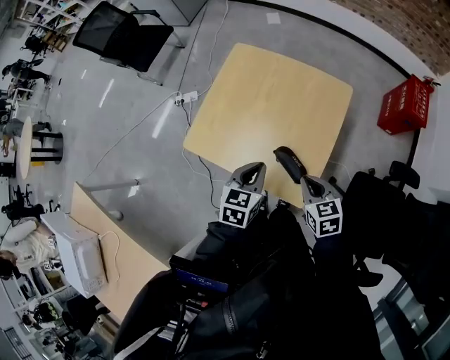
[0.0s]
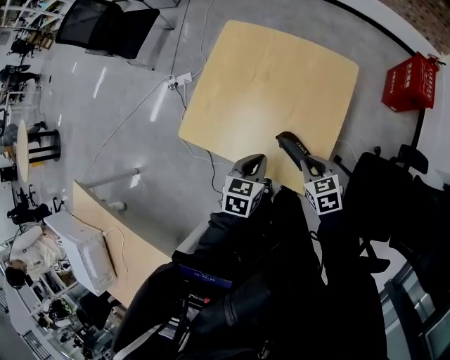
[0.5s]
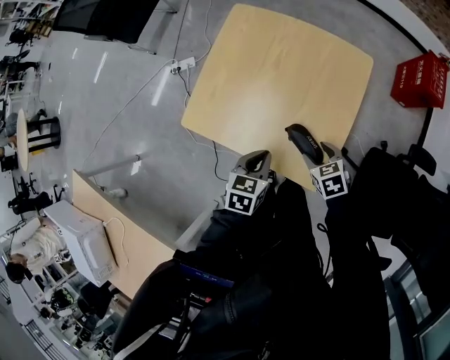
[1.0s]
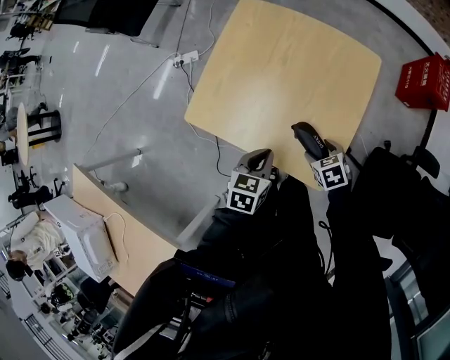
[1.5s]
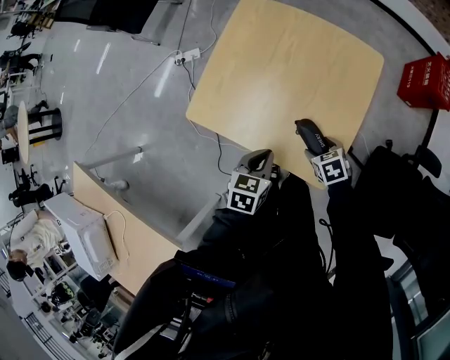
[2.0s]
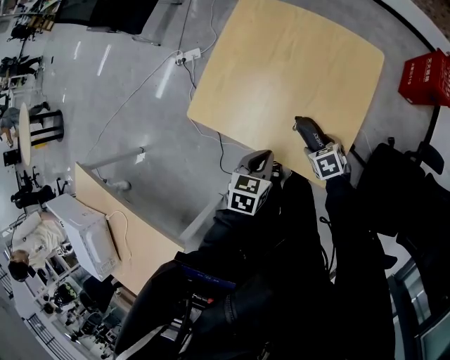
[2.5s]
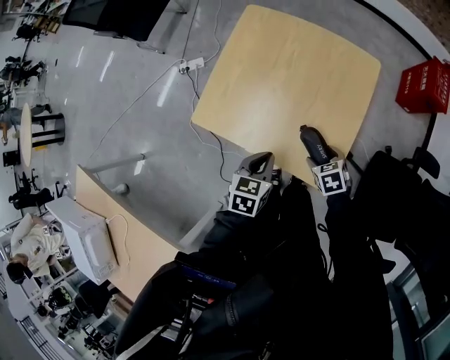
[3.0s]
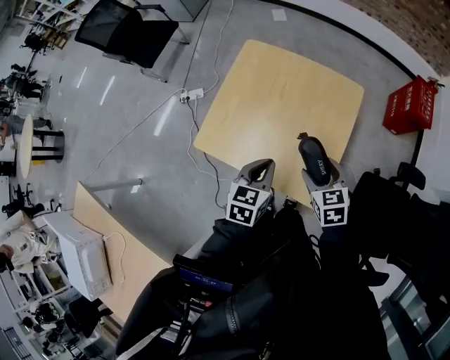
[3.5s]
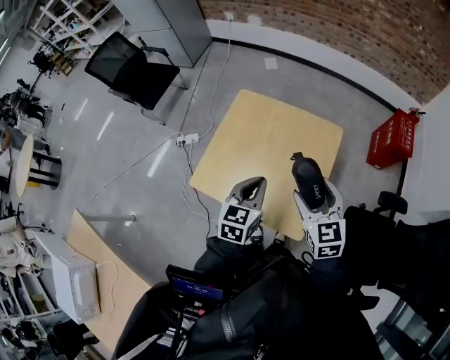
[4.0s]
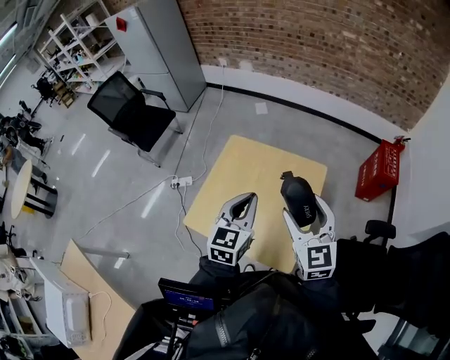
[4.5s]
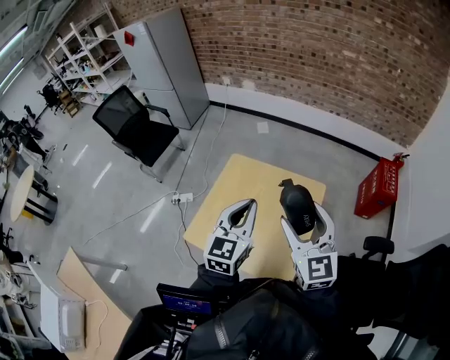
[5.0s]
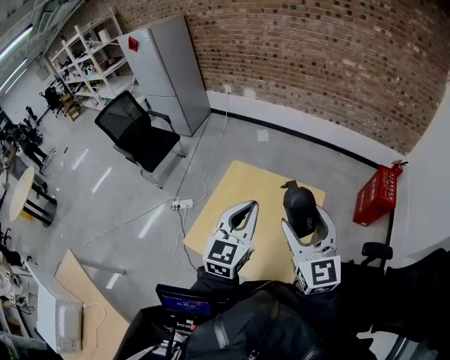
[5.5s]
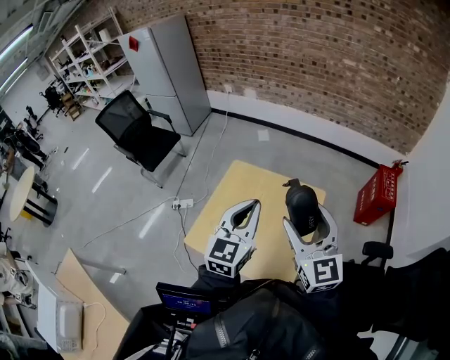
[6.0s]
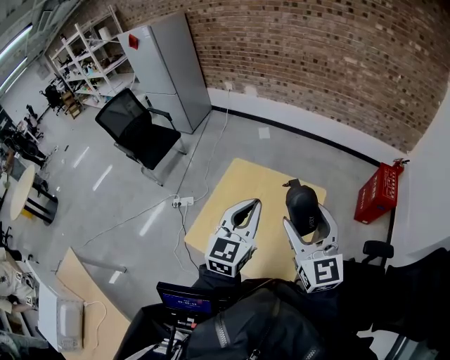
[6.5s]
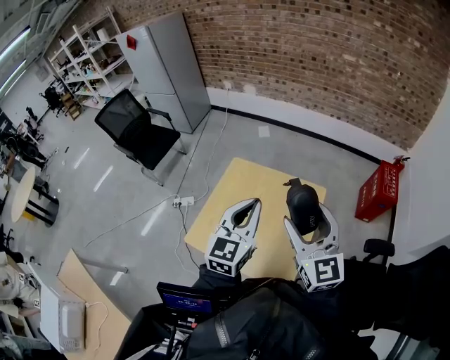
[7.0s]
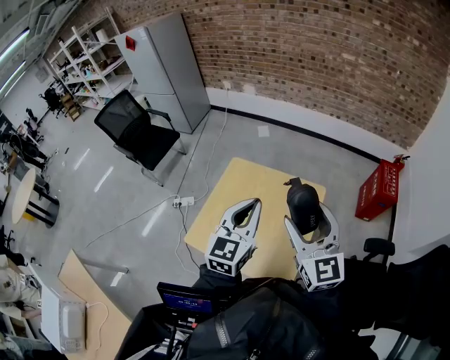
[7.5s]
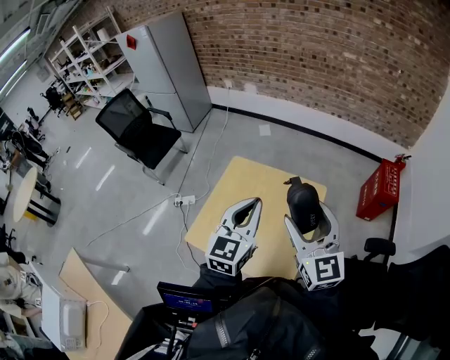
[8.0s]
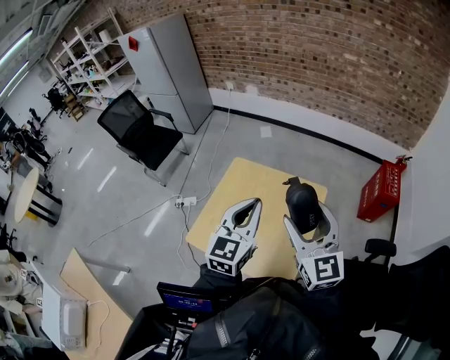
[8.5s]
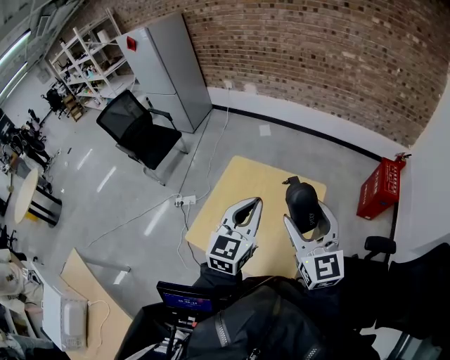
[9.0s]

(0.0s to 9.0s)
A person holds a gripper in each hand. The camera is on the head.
0.0s - 2.0s: The left gripper heads downward, covering about 10 cm. Meanwhile the right gripper goes approximately 20 cm downward, rotates approximately 30 degrees, and opens up.
2.0s - 4.5s: Both grippers move upward, some 40 cm. The left gripper angles its fingers upward, by about 30 degrees. The right gripper tips its fingers upward by some 50 degrees.
4.5s - 7.0s: Both grippers move upward, about 5 cm.
7.0s - 9.0s: Neither gripper changes place.

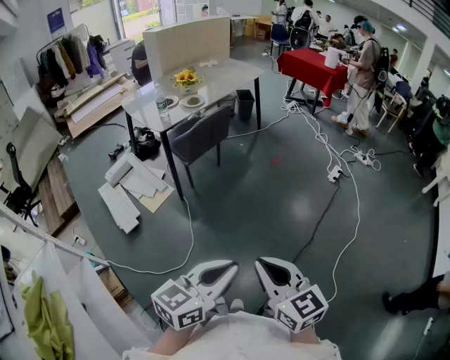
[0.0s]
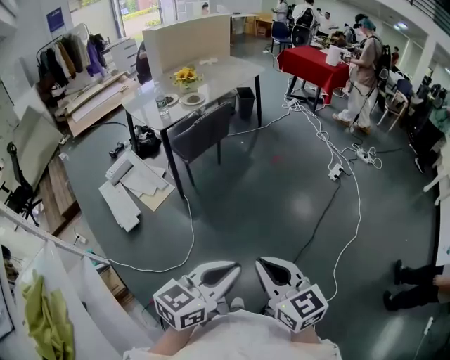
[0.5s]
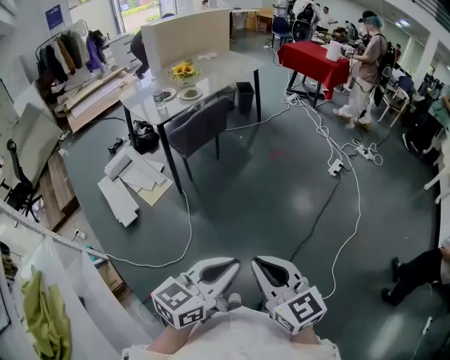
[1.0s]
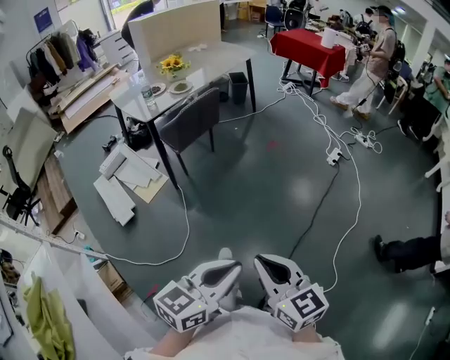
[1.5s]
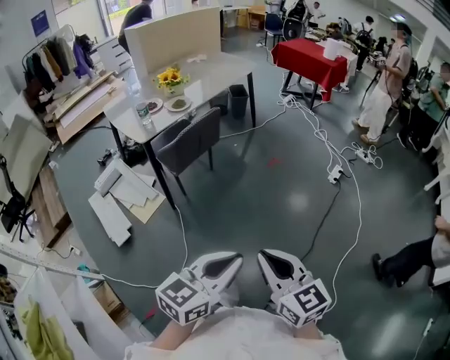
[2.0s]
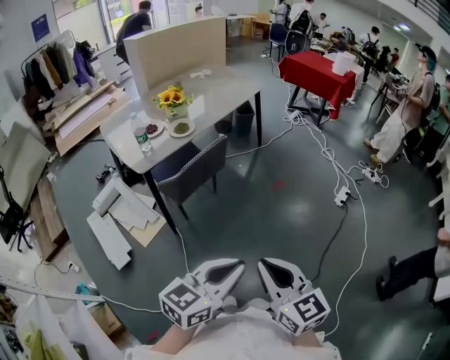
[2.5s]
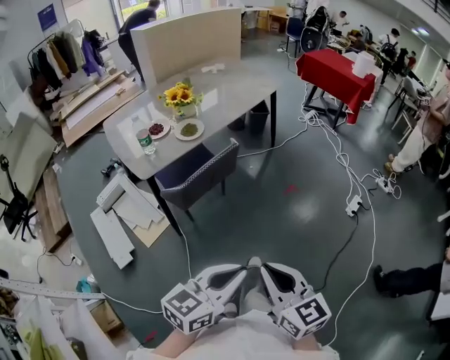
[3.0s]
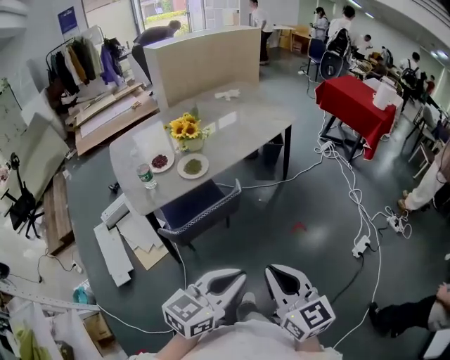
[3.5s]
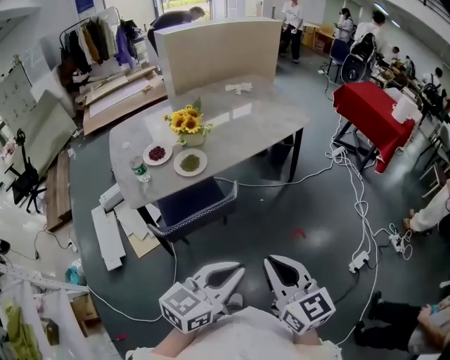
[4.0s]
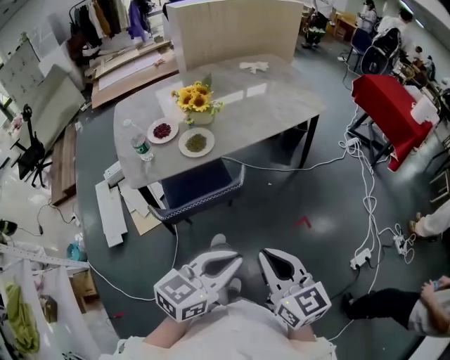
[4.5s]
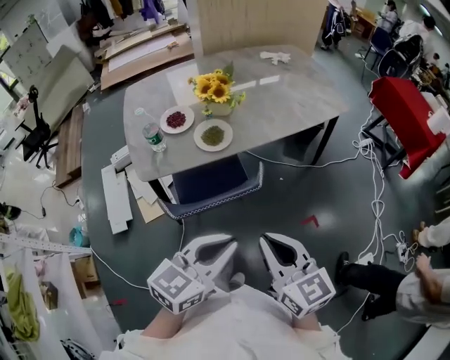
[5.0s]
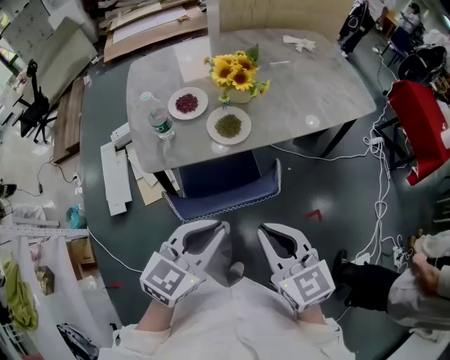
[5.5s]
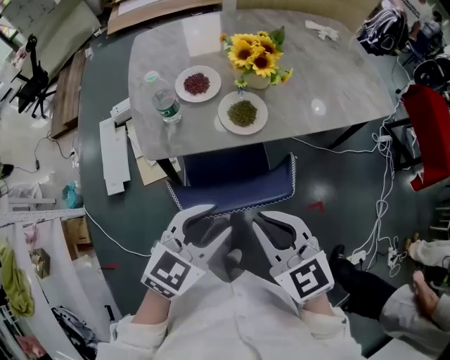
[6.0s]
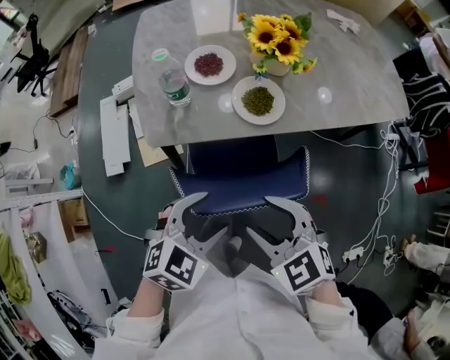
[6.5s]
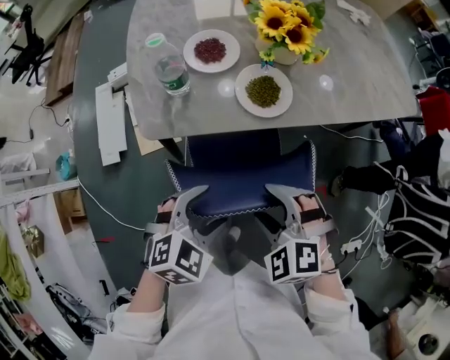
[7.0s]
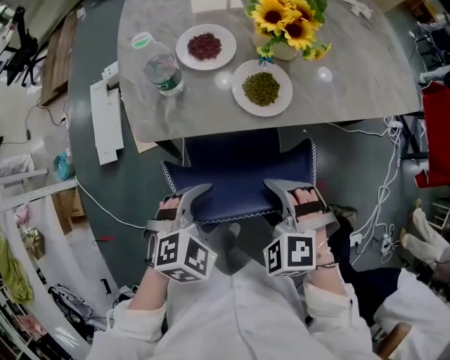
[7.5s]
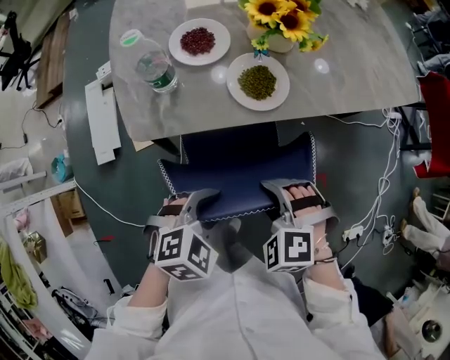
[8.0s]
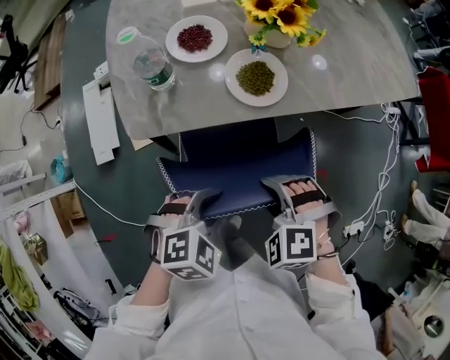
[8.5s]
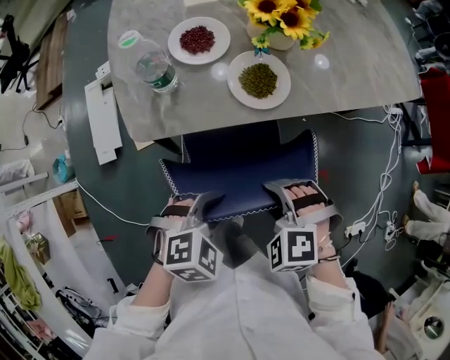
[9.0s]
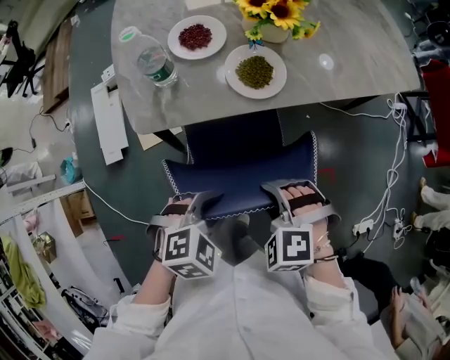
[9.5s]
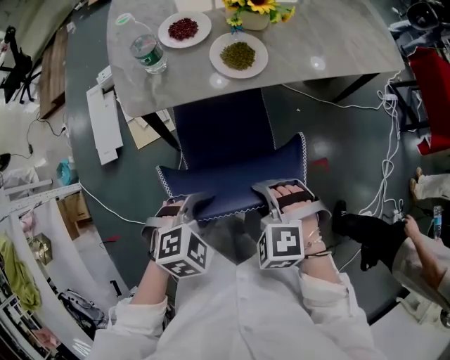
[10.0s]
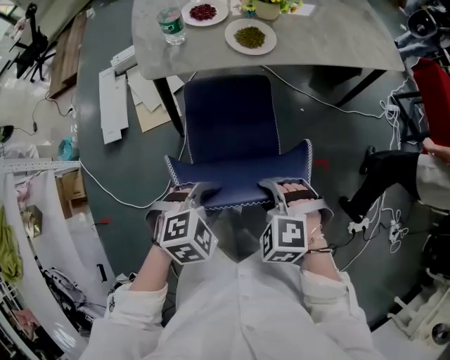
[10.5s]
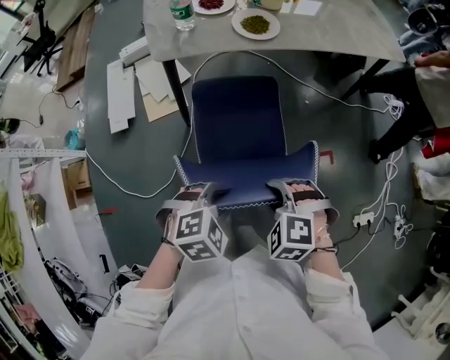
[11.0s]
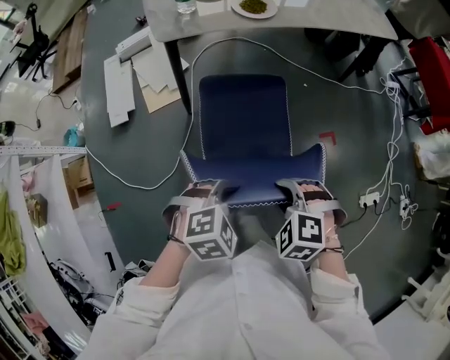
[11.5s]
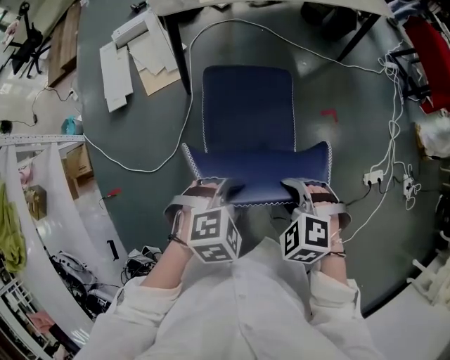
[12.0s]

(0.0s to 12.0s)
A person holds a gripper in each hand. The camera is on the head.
0.0s - 2.0s: The two grippers go roughly 15 cm forward.
2.0s - 4.0s: The two grippers travel together, forward, some 50 cm.
4.0s - 6.0s: The two grippers go some 25 cm to the left, forward and downward. The left gripper changes its angle by about 30 degrees, and opens its fingers; the right gripper swivels roughly 40 degrees.
6.0s - 8.0s: The grippers both shift downward by roughly 15 cm. The right gripper tips its fingers downward by some 40 degrees, and opens its fingers. The left gripper changes its angle by some 30 degrees, and opens, then closes once more.
8.0s - 10.0s: The grippers both shift backward by roughly 10 cm.
10.0s - 12.0s: The two grippers go some 30 cm backward.

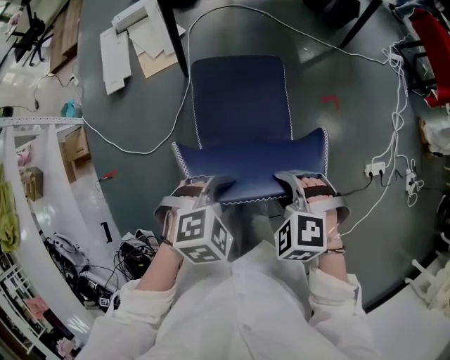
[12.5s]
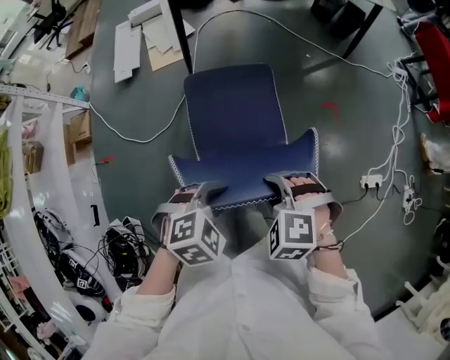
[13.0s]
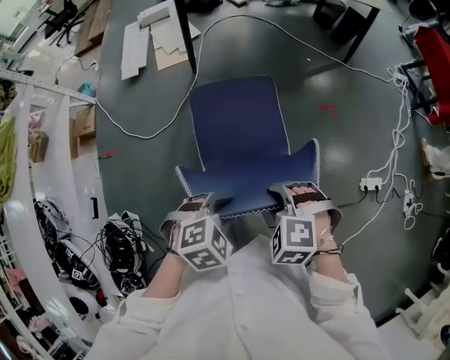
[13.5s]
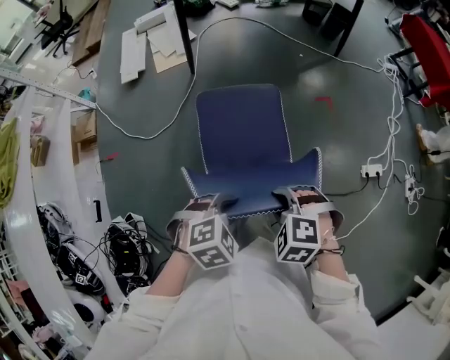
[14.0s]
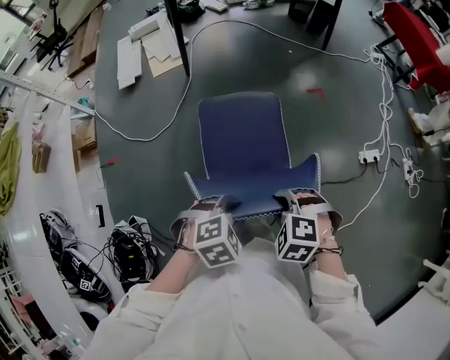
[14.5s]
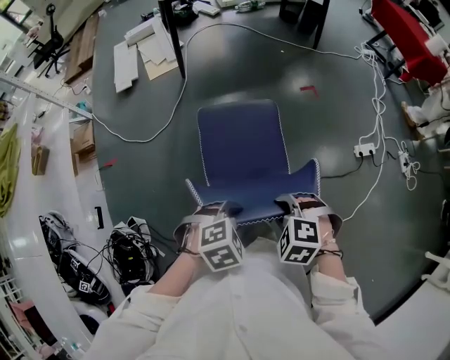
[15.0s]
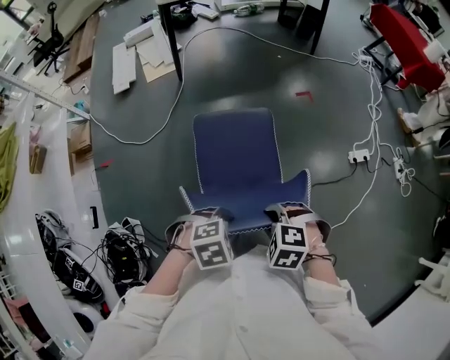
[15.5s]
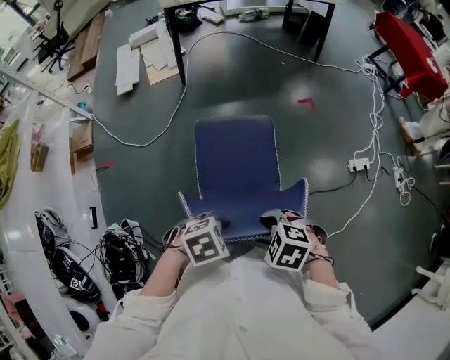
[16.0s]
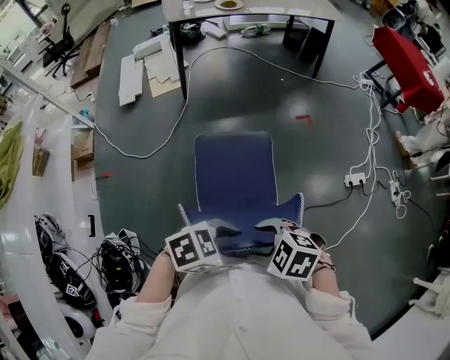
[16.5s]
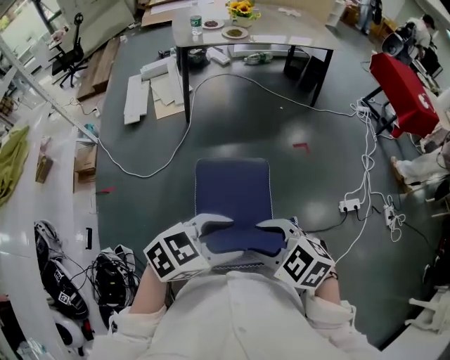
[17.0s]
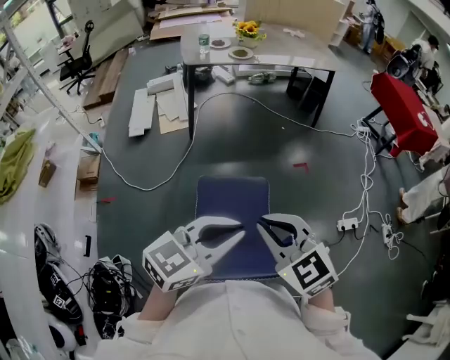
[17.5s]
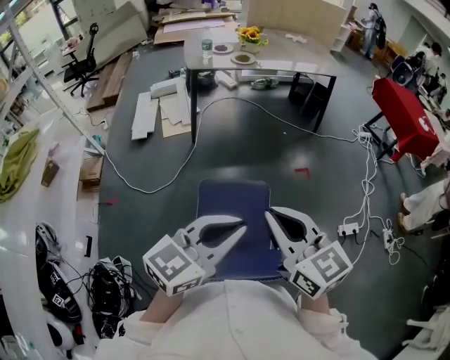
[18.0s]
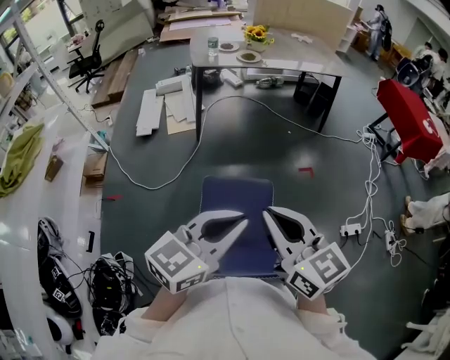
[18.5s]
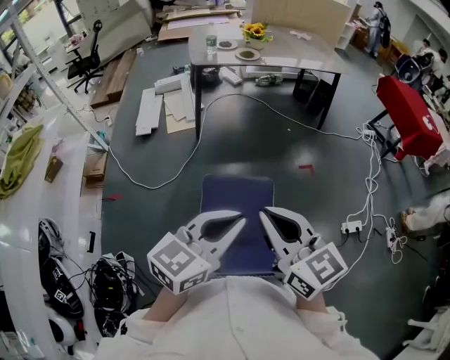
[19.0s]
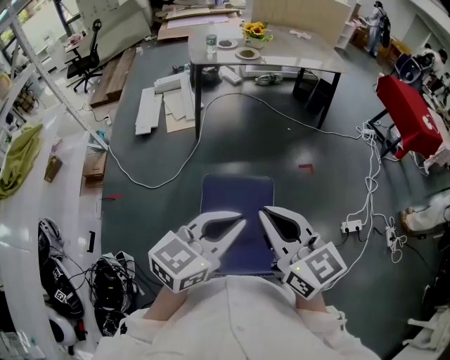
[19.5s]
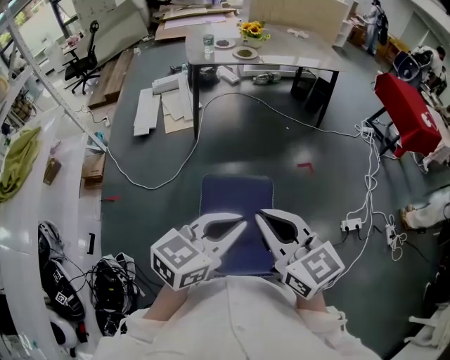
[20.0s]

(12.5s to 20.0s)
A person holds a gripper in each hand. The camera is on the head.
12.5s - 14.5s: Both grippers travel together backward and to the right, some 35 cm.
14.5s - 16.5s: The right gripper changes place by some 10 cm, turns by roughly 30 degrees, and opens up. Meanwhile the left gripper is displaced upward by roughly 10 cm, swivels about 30 degrees, and opens up.
16.5s - 18.0s: Both grippers move upward, about 20 cm. The right gripper points its fingers approximately 50 degrees further upward, and closes its fingers; the left gripper tips its fingers upward by about 30 degrees, and closes up.
18.0s - 20.0s: There are only small adjustments of the grippers.
